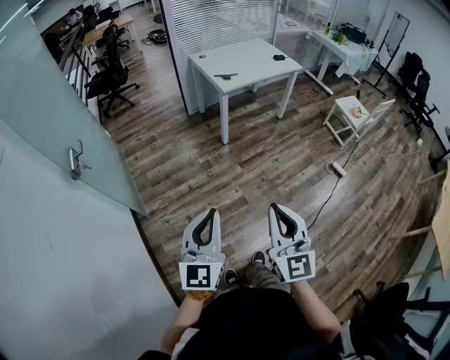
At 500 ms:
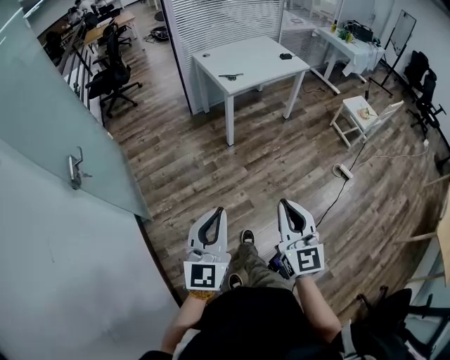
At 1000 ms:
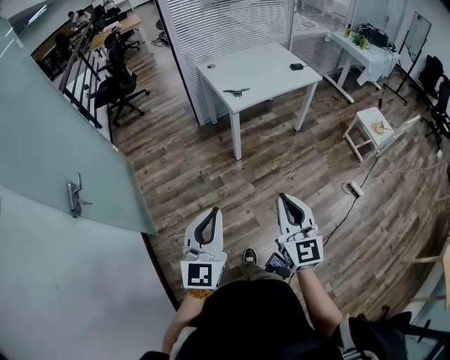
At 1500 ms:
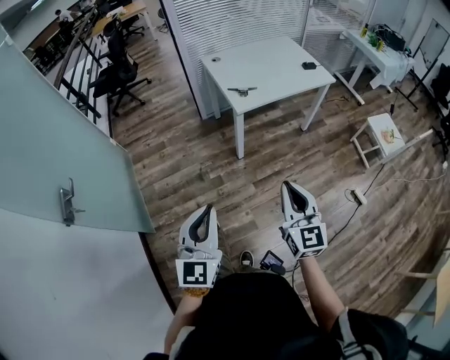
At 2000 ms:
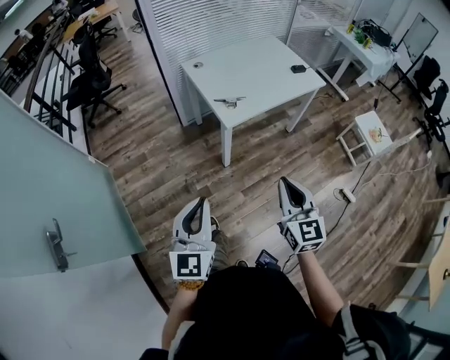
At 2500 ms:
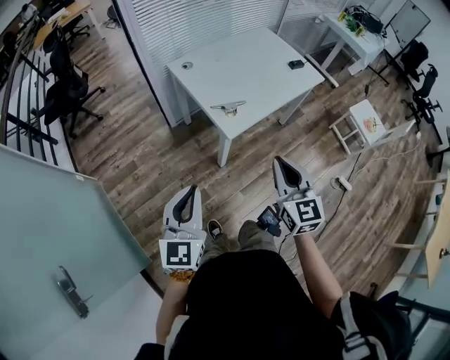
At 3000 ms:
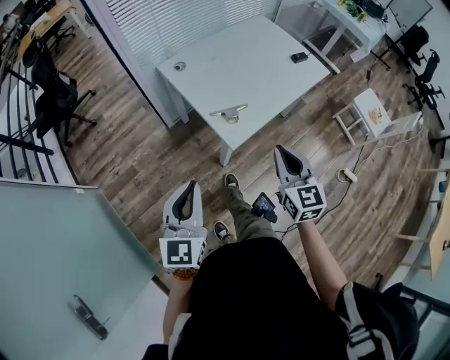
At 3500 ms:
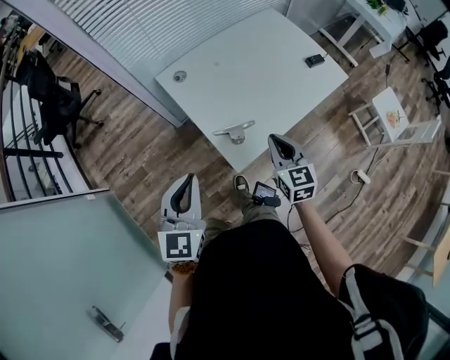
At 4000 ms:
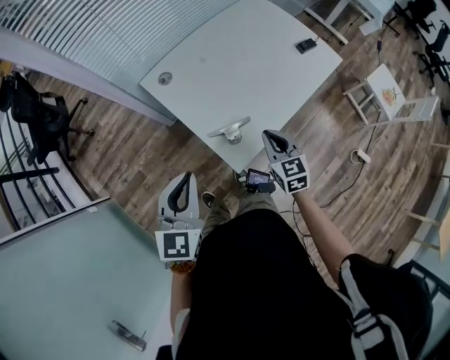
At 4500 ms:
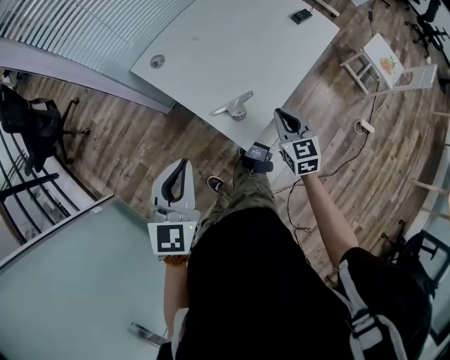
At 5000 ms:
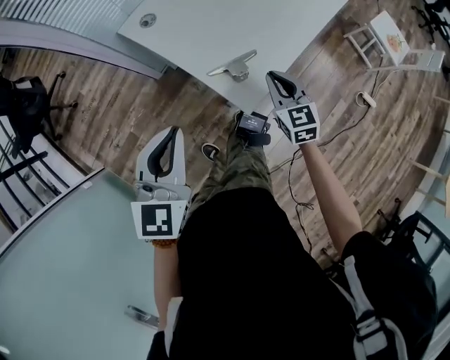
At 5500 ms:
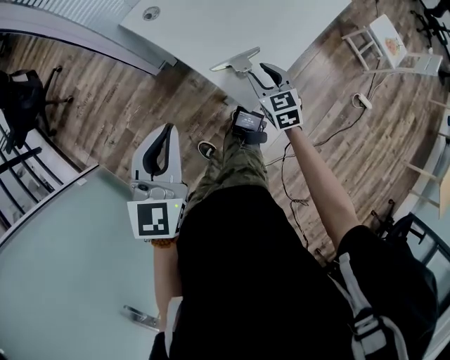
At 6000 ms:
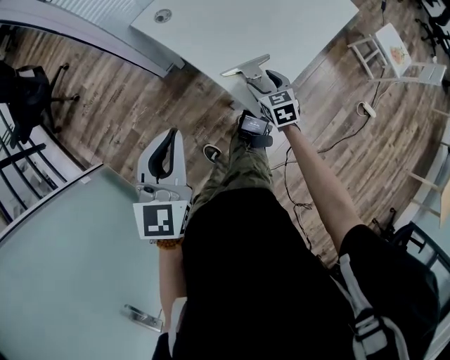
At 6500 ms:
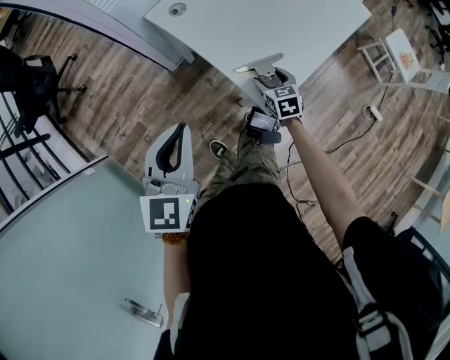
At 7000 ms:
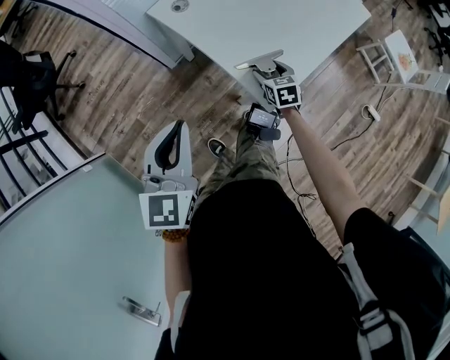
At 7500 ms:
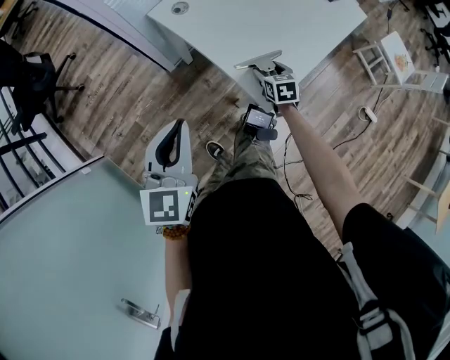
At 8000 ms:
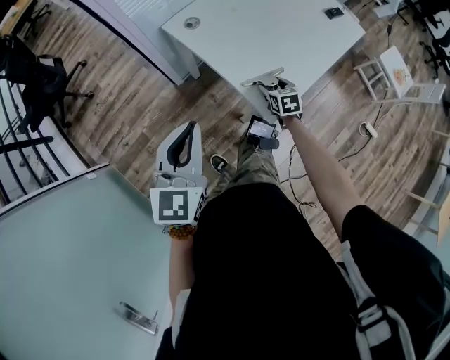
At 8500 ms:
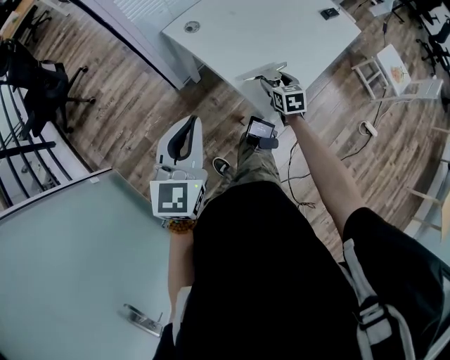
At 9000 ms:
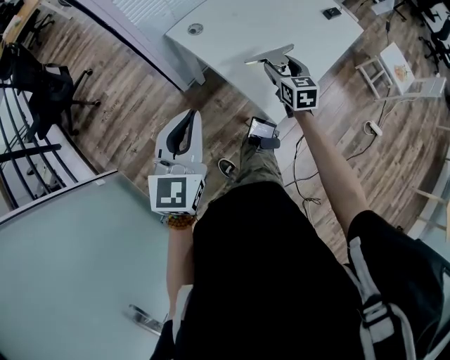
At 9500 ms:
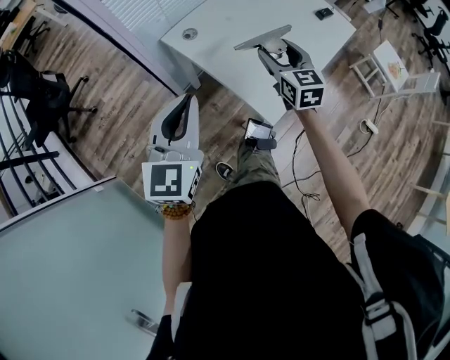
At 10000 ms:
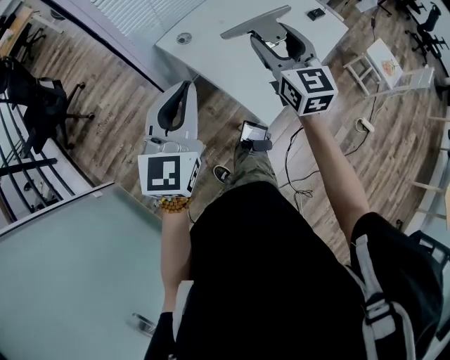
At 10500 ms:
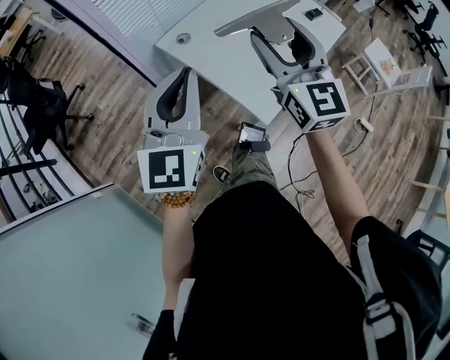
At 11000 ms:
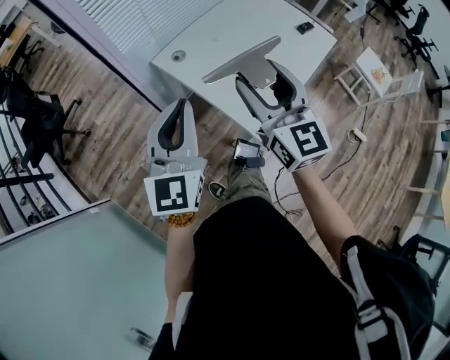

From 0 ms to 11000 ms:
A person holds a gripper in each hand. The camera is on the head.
From 0 ms to 2000 ms: The pair of grippers is taken forward, some 50 cm.
From 2000 ms to 3500 ms: The pair of grippers is taken forward, some 50 cm.
From 3500 ms to 5500 ms: The right gripper shifts approximately 20 cm downward and to the left, and opens up. The left gripper shifts some 10 cm to the left and downward.
From 5500 ms to 7500 ms: The right gripper is displaced downward by some 10 cm, and opens up.
From 7500 ms to 9000 ms: The left gripper goes roughly 5 cm upward; the right gripper moves upward, some 15 cm.
From 9000 ms to 11000 ms: The right gripper shifts about 25 cm upward, and turns by roughly 30 degrees. The left gripper goes approximately 10 cm upward.

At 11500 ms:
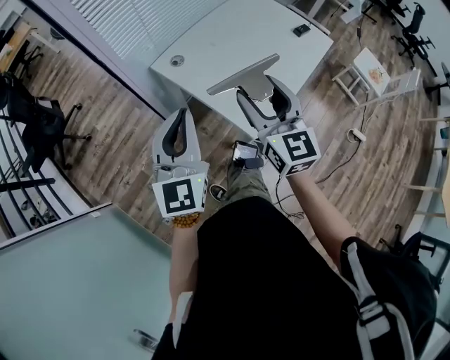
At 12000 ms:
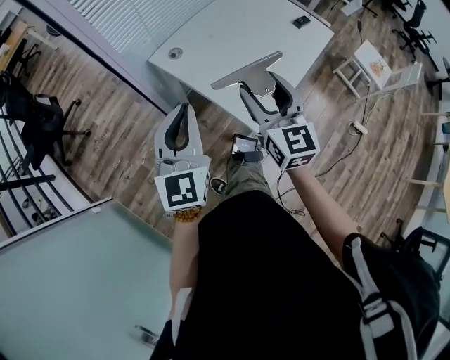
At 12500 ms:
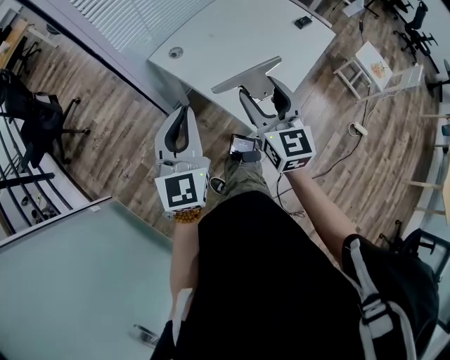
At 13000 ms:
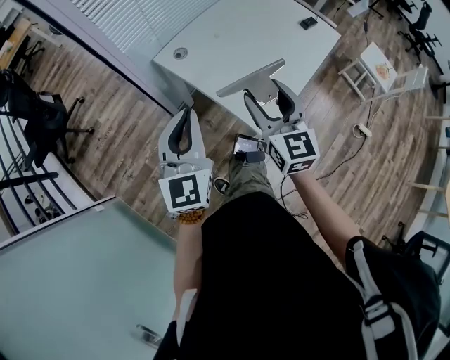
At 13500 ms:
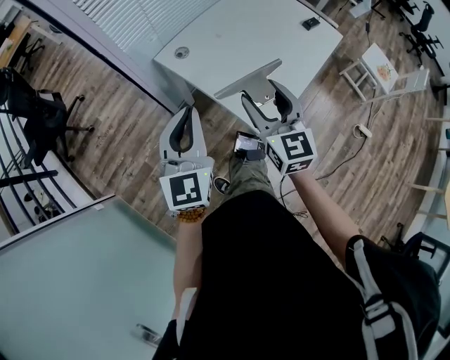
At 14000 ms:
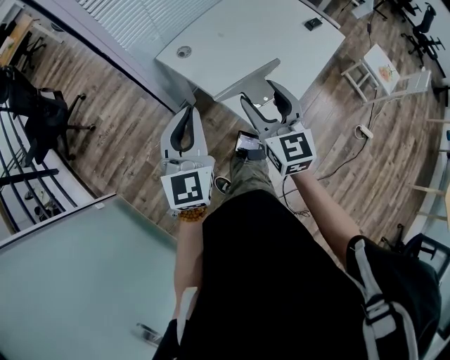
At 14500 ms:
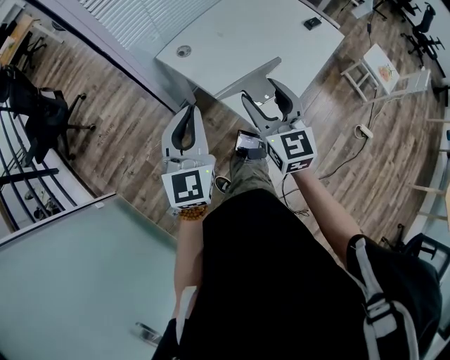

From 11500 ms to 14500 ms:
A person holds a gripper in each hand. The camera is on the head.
From 11500 ms to 13000 ms: The right gripper heads downward, covering roughly 5 cm.
From 13000 ms to 14500 ms: There are only small adjustments of the grippers.

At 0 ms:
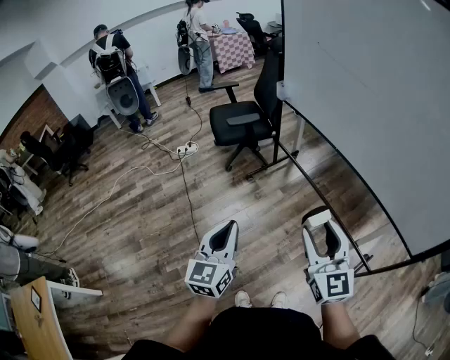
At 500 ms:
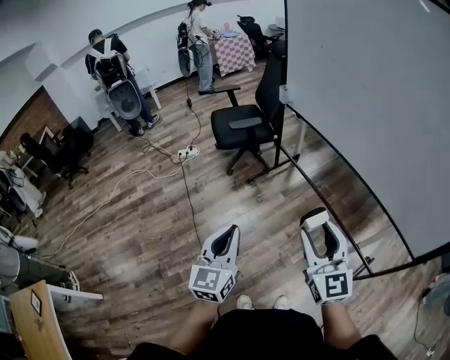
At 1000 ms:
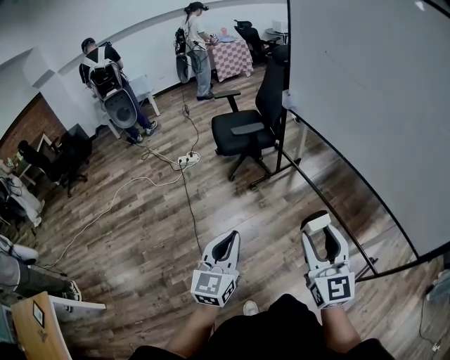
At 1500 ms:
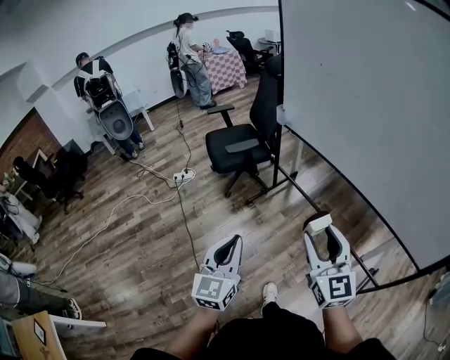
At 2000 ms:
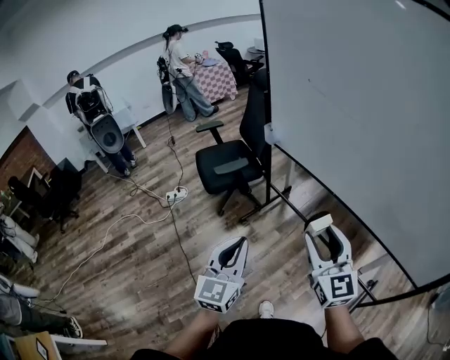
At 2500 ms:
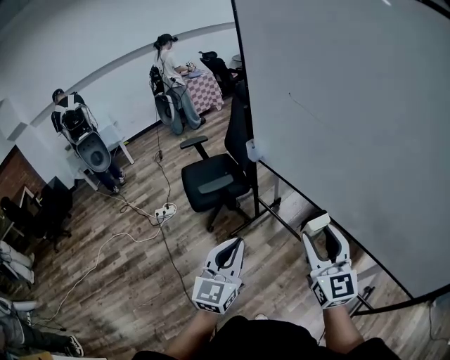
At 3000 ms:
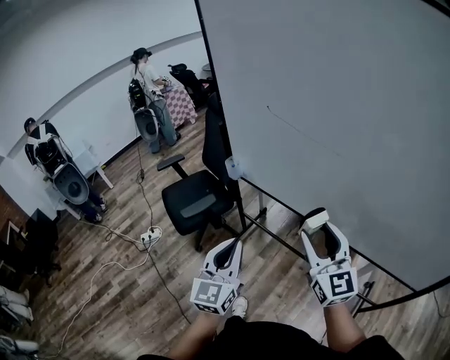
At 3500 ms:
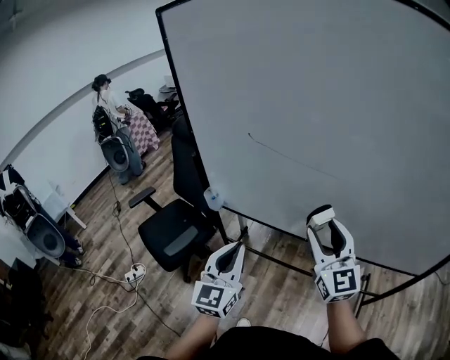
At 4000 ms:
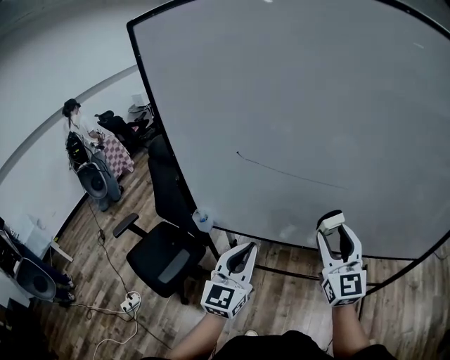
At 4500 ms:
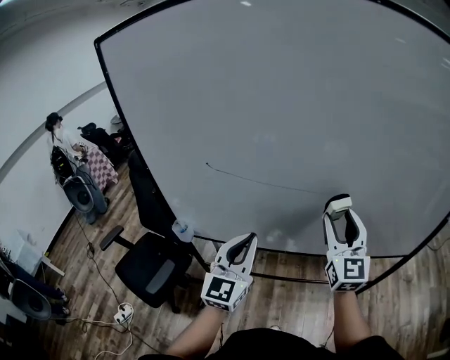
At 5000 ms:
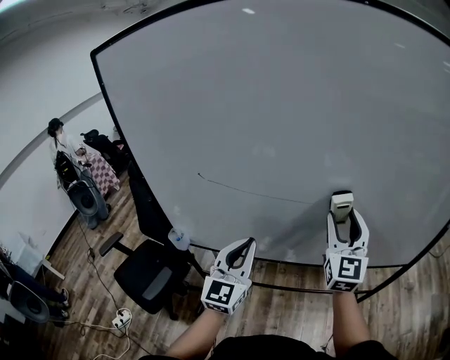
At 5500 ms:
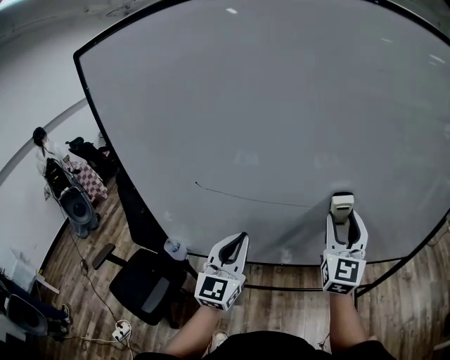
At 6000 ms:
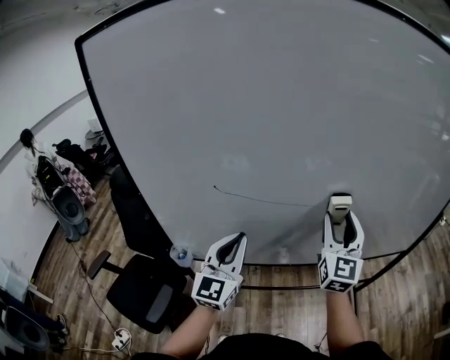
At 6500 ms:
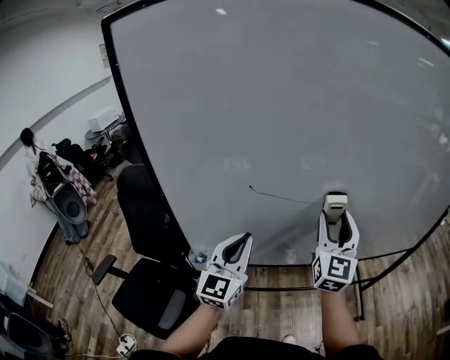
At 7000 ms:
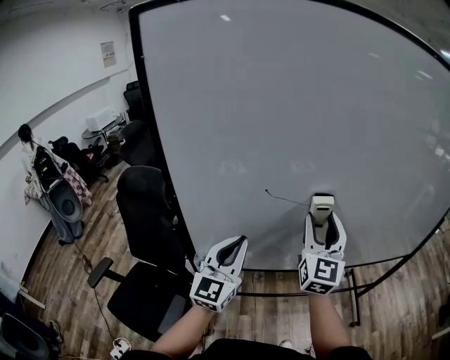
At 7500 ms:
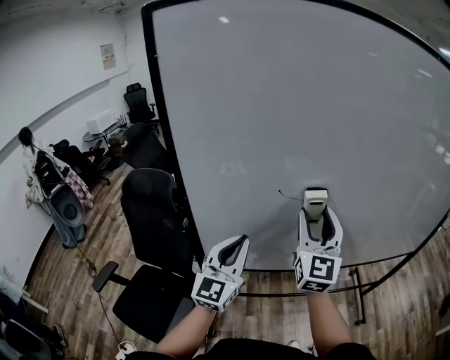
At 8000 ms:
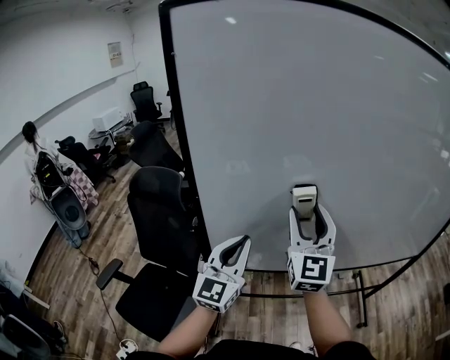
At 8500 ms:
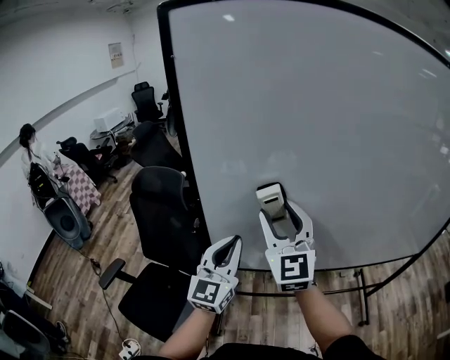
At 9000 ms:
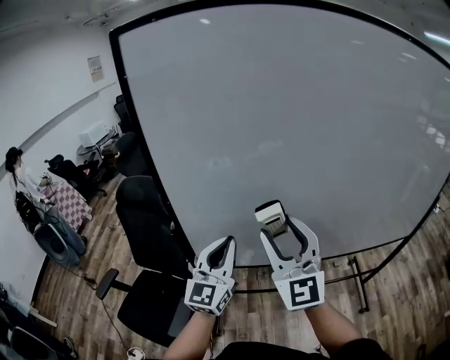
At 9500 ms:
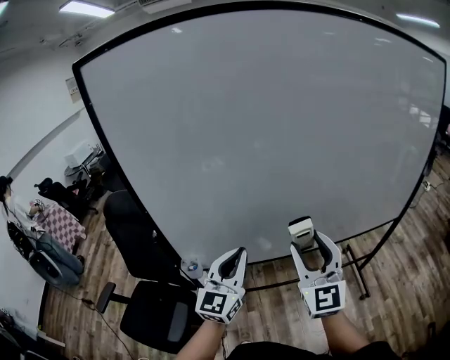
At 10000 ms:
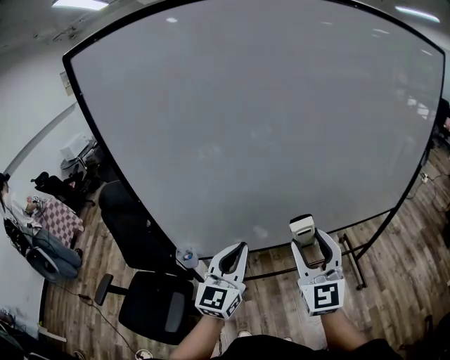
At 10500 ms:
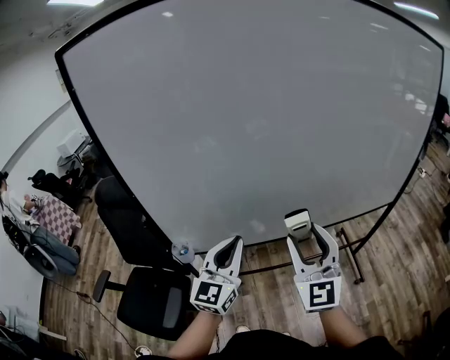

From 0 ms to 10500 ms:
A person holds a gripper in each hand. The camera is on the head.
From 0 ms to 2000 ms: The grippers both shift forward by some 20 cm.
From 2000 ms to 4000 ms: The right gripper moves approximately 30 cm, and rotates about 40 degrees; the left gripper moves approximately 40 cm, and turns by approximately 40 degrees.
From 4000 ms to 6500 ms: The two grippers go roughly 15 cm forward and to the left. The right gripper turns by about 30 degrees.
From 6500 ms to 8500 ms: The left gripper goes approximately 10 cm to the left, while the right gripper moves to the left, approximately 25 cm, and changes its angle by approximately 30 degrees.
From 8500 ms to 10500 ms: The right gripper goes about 30 cm to the right and backward. Meanwhile the left gripper moves to the right, roughly 20 cm.

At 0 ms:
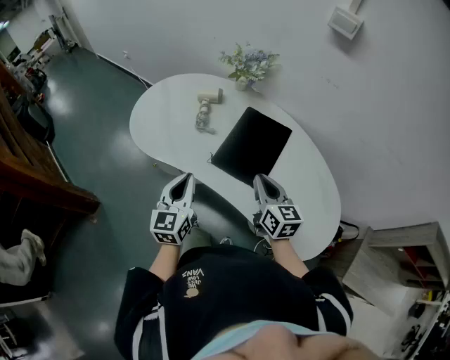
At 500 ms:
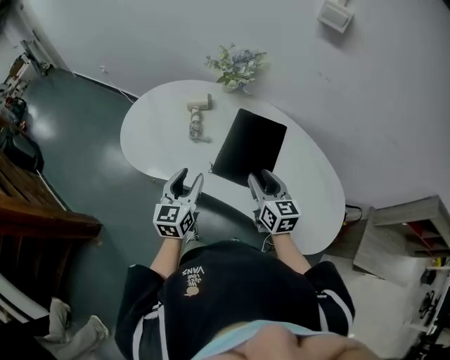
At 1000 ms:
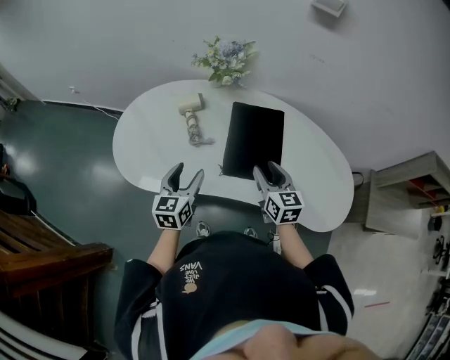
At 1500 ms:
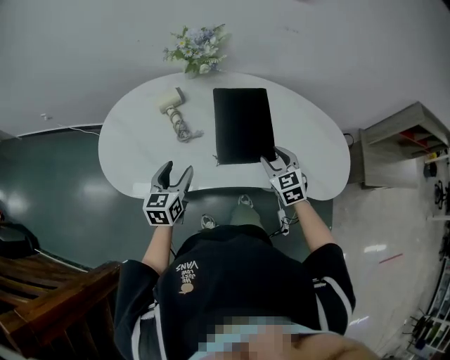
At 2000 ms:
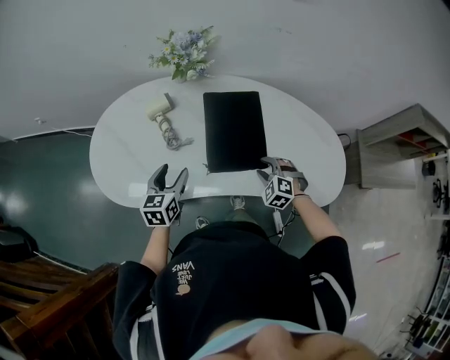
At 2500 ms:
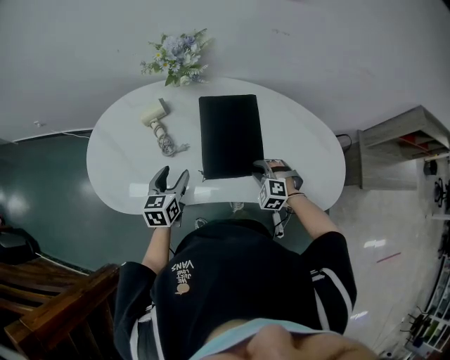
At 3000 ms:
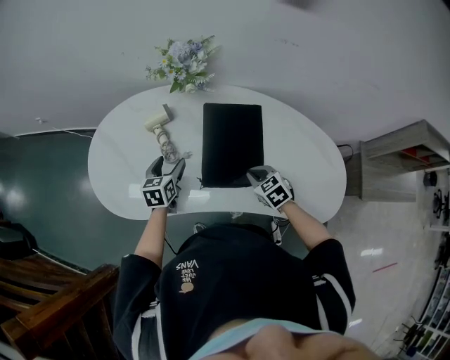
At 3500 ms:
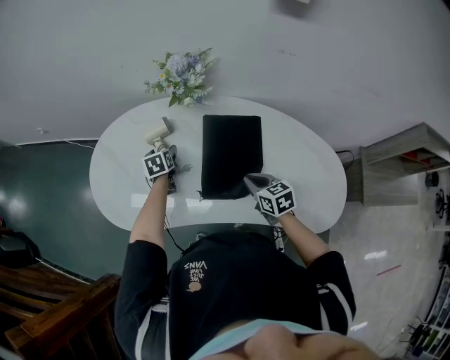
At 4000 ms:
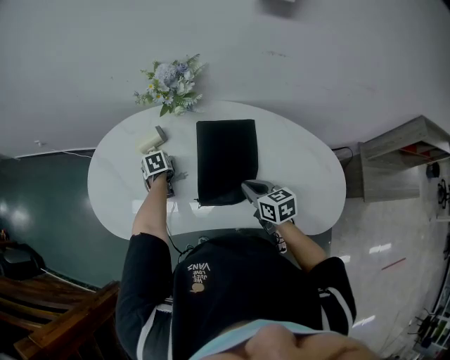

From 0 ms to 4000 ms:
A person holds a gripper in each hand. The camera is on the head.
From 0 ms to 2000 ms: The left gripper ends up some 25 cm from where it was, turns by approximately 40 degrees, and opens its fingers, while the right gripper is displaced downward by approximately 15 cm, angles its fingers downward, by roughly 40 degrees, and opens up.
From 2000 ms to 4000 ms: The left gripper is displaced forward and downward by approximately 25 cm, and tips its fingers downward by roughly 40 degrees. Meanwhile the right gripper travels forward and upward by roughly 10 cm, rotates around the line of its fingers by some 70 degrees, clockwise from behind, and closes.
